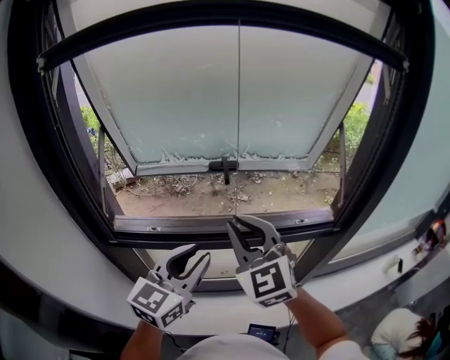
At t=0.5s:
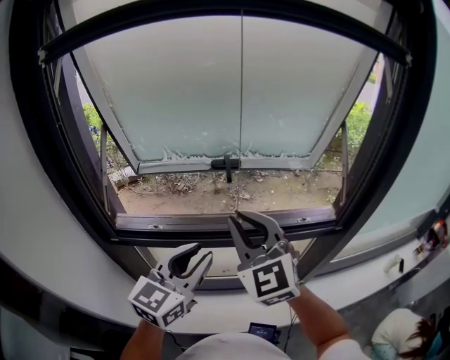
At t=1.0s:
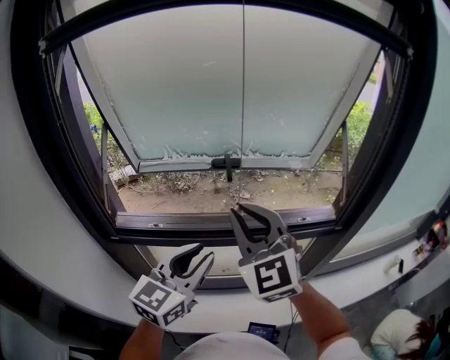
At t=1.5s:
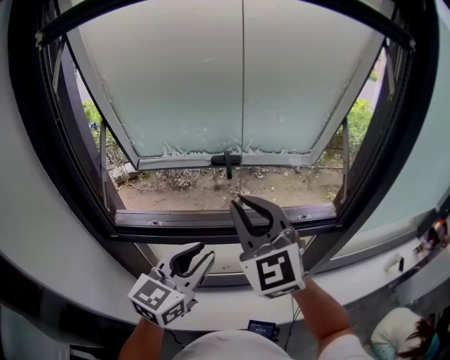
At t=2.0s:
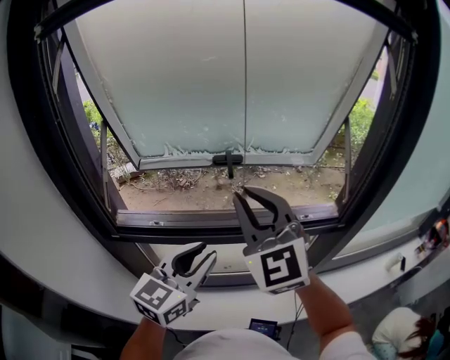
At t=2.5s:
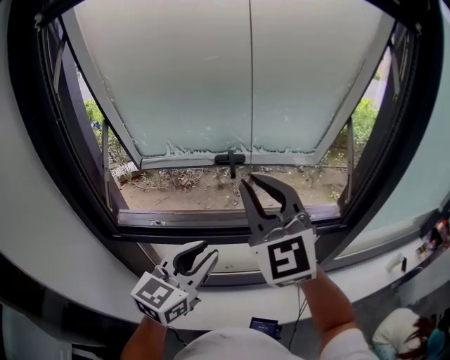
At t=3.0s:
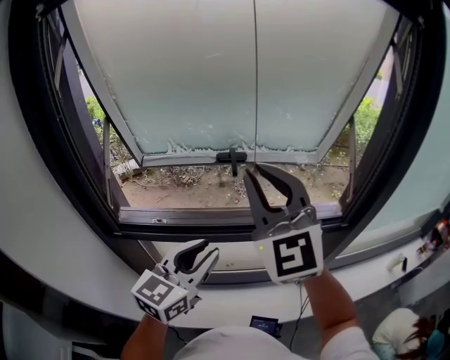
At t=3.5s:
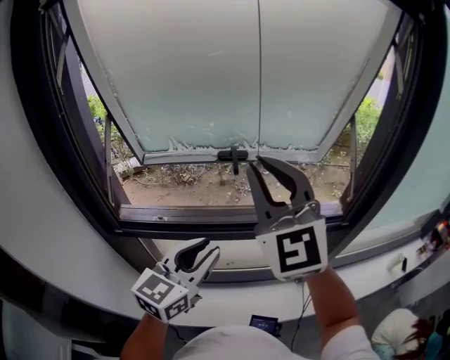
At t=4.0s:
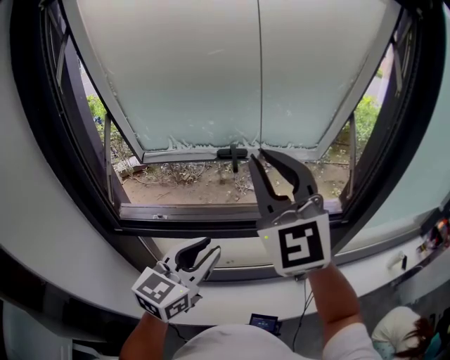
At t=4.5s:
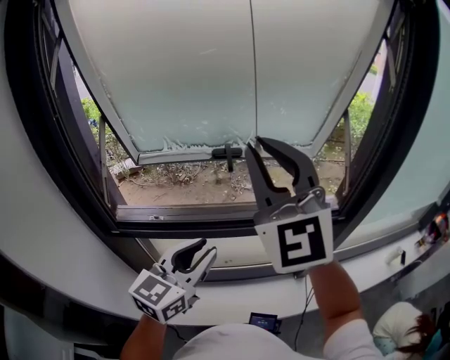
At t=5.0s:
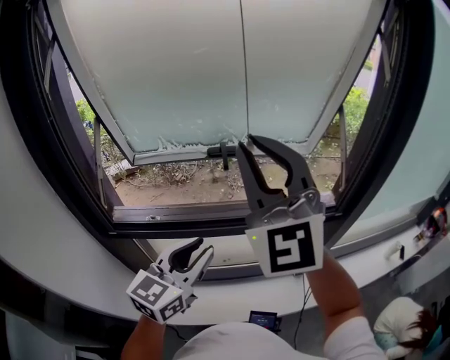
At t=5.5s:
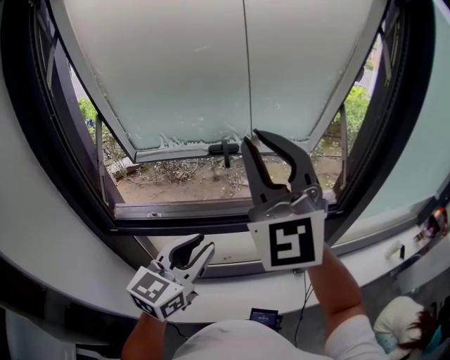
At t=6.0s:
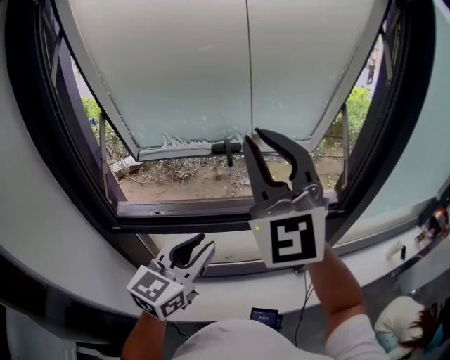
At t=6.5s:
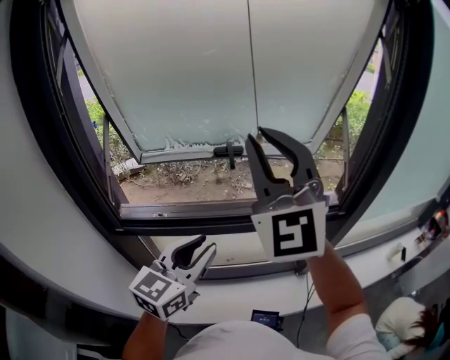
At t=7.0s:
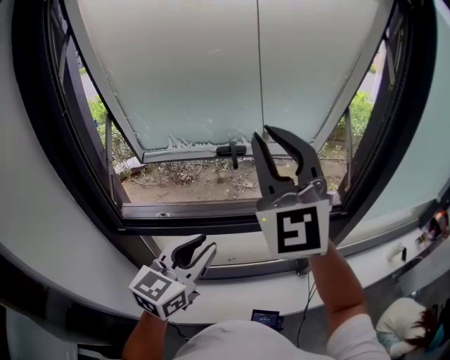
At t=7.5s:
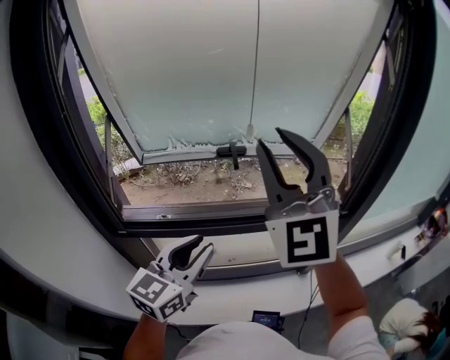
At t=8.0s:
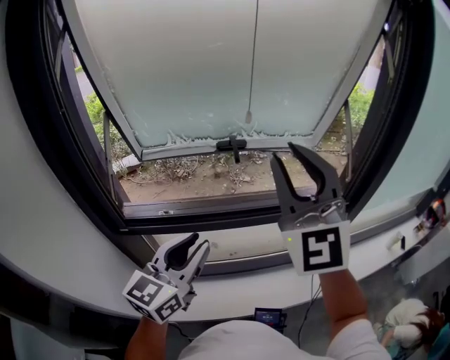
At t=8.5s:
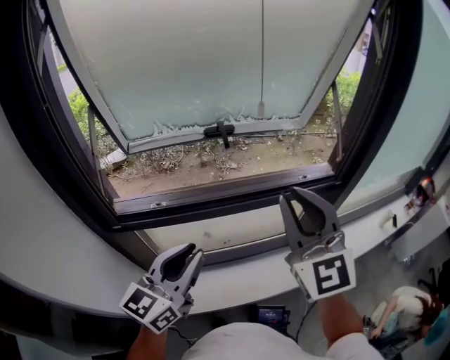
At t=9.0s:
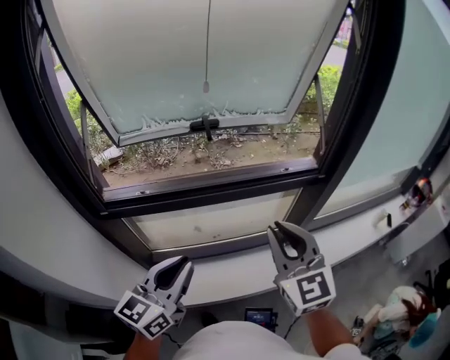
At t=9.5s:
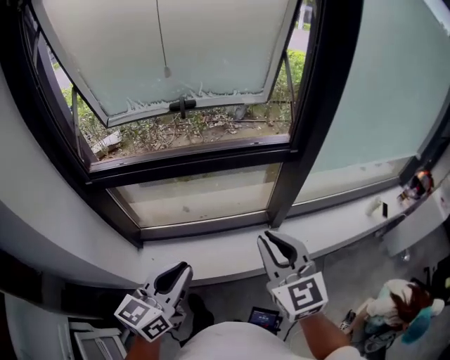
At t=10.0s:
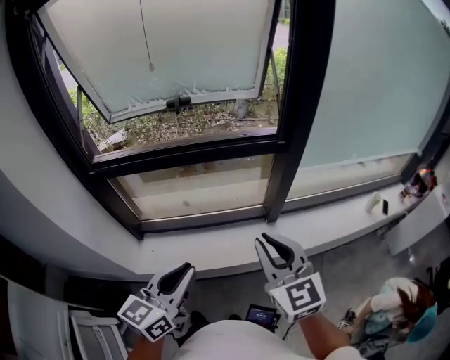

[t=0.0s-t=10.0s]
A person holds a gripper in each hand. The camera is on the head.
t=0.0s to t=2.0s: The right gripper is displaced upward by approximately 5 cm.
t=2.0s to t=4.0s: The right gripper heads upward, covering some 5 cm.
t=4.0s to t=6.0s: The grippers move only a little.
t=6.0s to t=8.0s: The left gripper heads to the left, covering approximately 5 cm.
t=8.0s to t=10.0s: The right gripper travels downward, backward and to the right by roughly 40 cm, and turns by some 40 degrees. Meanwhile the left gripper travels backward and to the right by some 30 cm.

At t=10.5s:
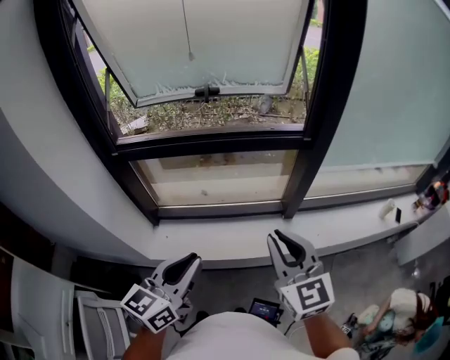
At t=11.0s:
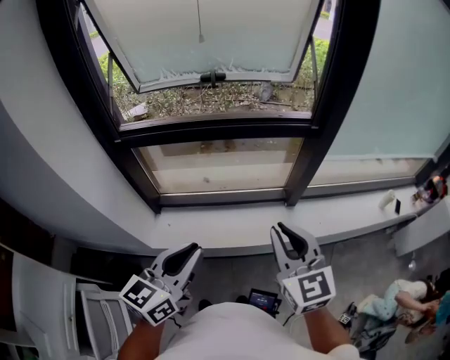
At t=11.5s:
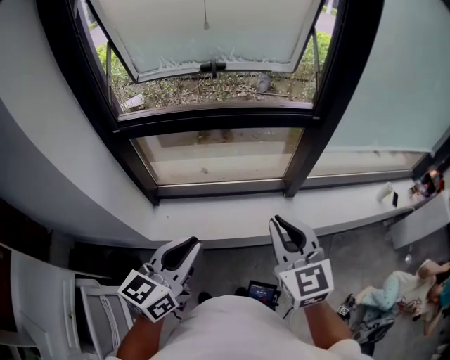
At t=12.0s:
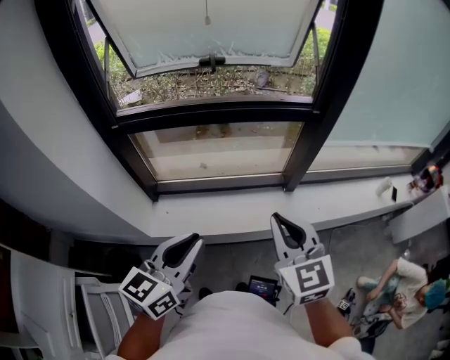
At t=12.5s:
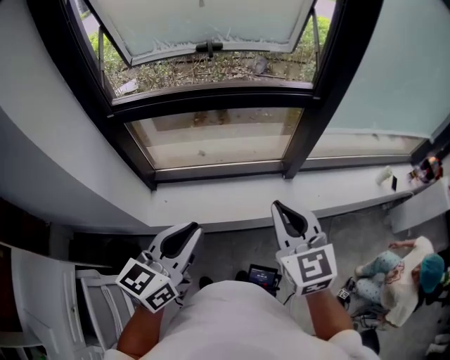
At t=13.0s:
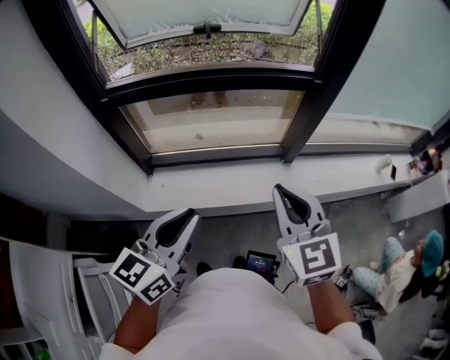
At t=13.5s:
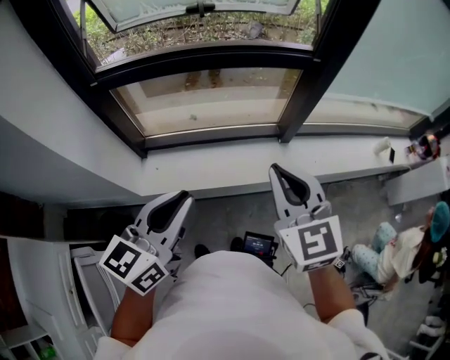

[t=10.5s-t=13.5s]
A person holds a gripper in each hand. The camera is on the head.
t=10.5s to t=12.0s: The right gripper ends up roughly 5 cm from where it was.
t=12.0s to t=13.5s: The grippers make only small movements.

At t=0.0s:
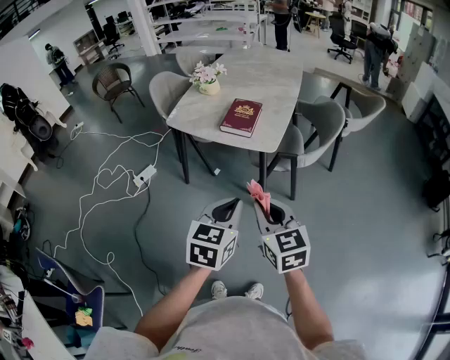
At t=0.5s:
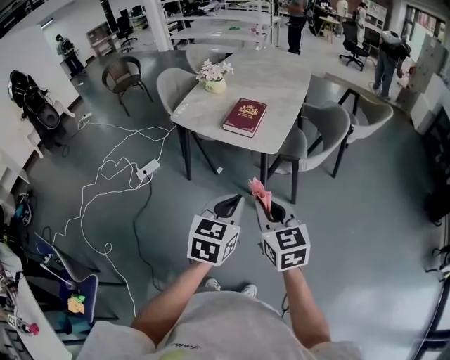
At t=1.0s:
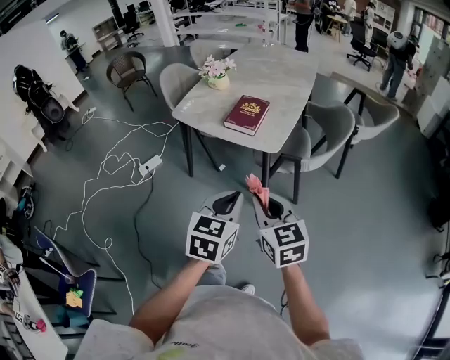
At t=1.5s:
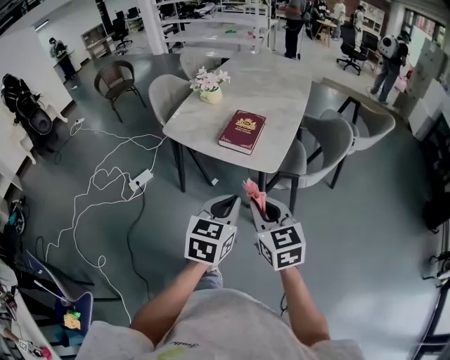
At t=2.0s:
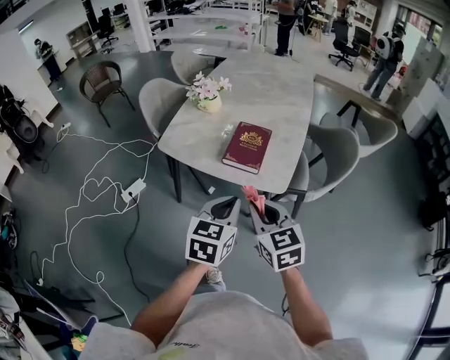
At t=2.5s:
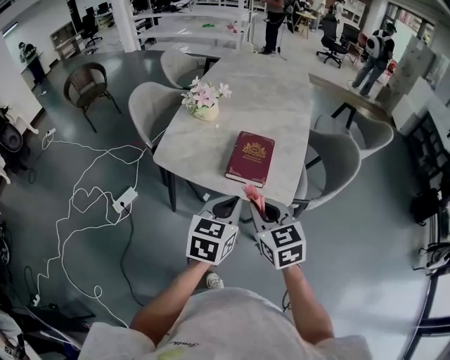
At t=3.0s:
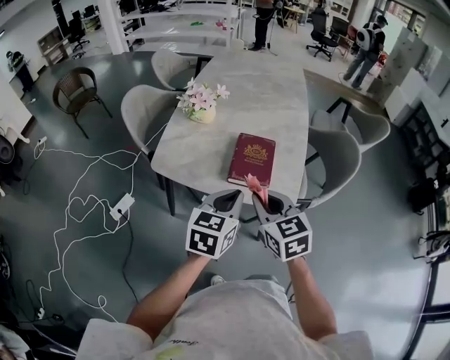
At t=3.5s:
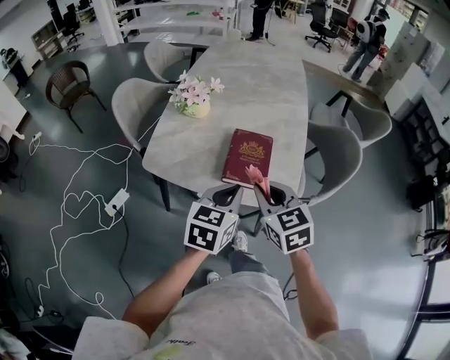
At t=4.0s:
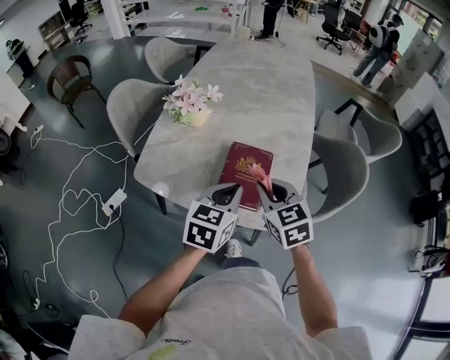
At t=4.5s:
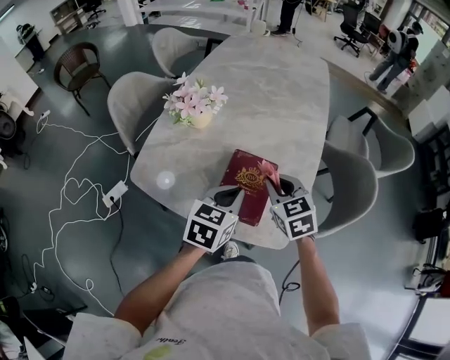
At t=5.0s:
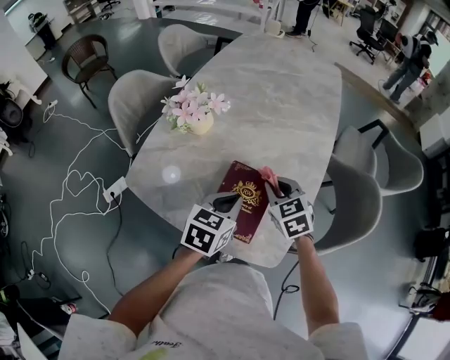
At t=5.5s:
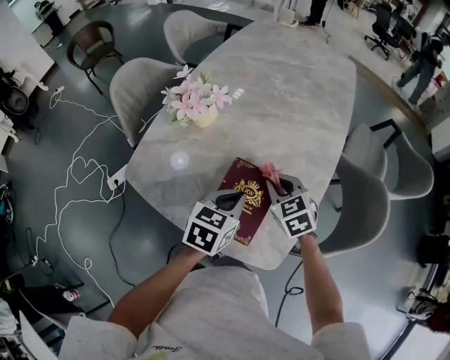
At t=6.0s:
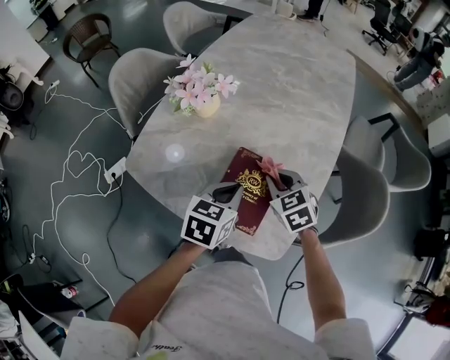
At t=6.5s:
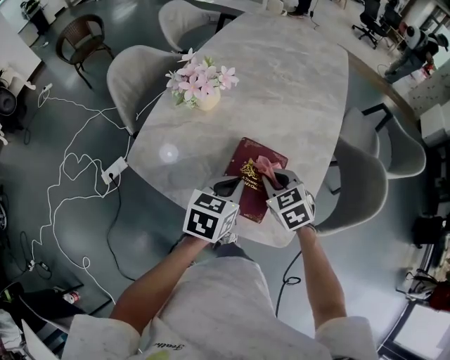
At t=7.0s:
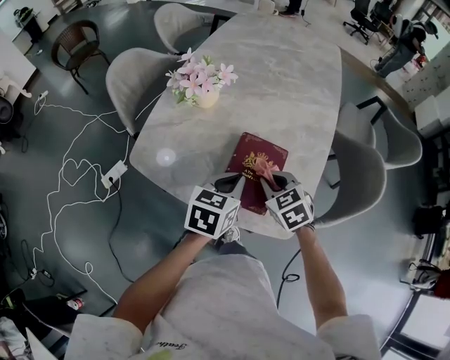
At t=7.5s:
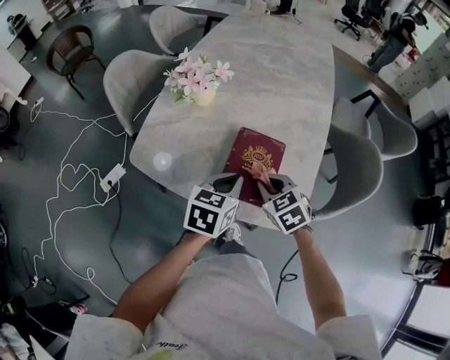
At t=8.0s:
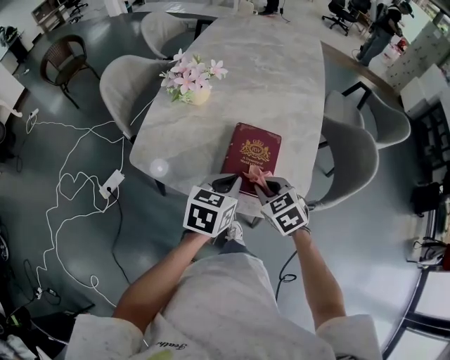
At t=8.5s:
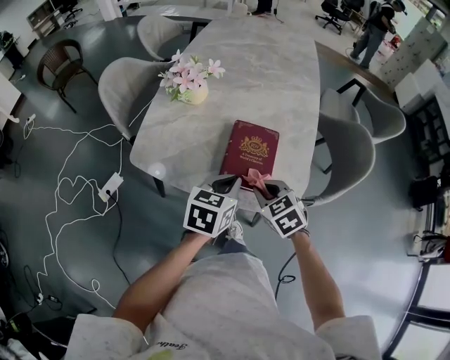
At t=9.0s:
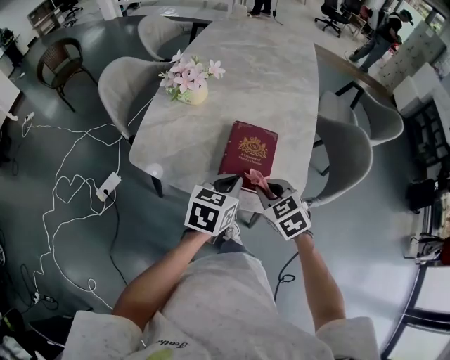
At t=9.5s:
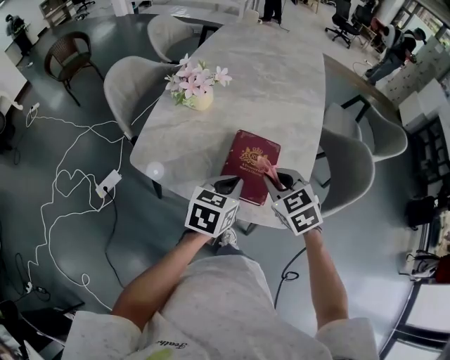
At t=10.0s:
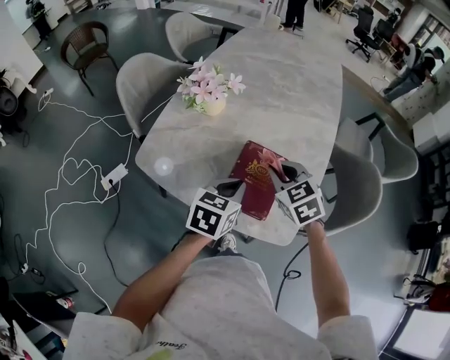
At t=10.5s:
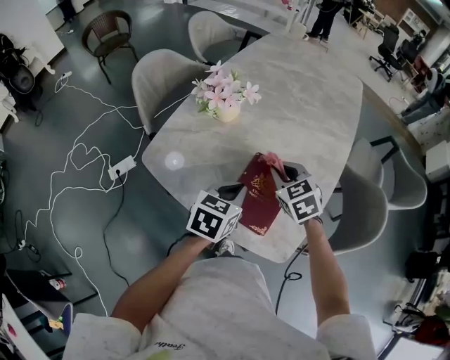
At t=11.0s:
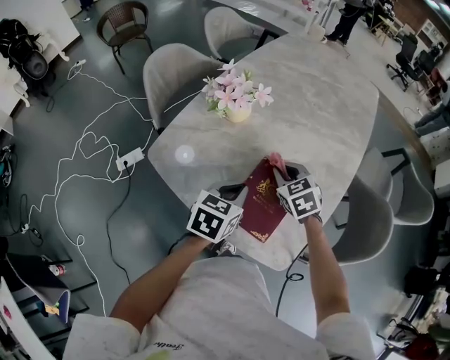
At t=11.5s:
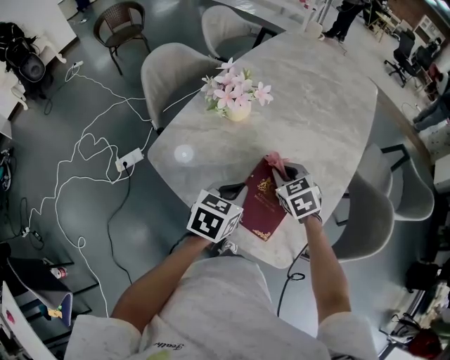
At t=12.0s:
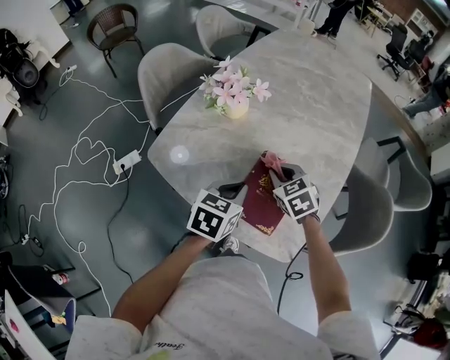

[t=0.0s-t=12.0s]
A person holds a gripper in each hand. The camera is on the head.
t=0.0s to t=2.0s: Both grippers move forward, some 20 cm.
t=2.0s to t=4.0s: The grippers both shift forward by roughly 25 cm.
t=4.0s to t=6.0s: Both grippers travel together forward and downward, roughly 15 cm.
t=6.0s to t=8.0s: The right gripper moves backward, approximately 15 cm. Meanwhile the left gripper heads backward, covering about 10 cm.
t=8.0s to t=10.0s: The right gripper is displaced forward and upward by about 10 cm.
t=10.0s to t=12.0s: The right gripper goes some 10 cm downward and forward.

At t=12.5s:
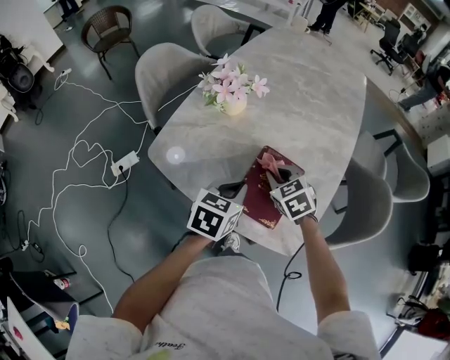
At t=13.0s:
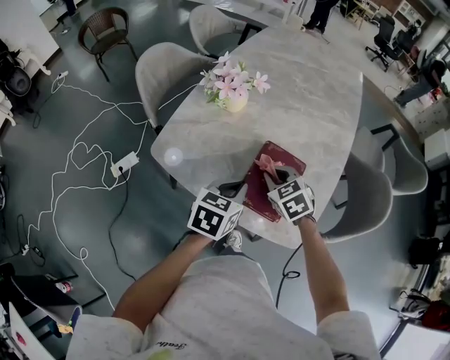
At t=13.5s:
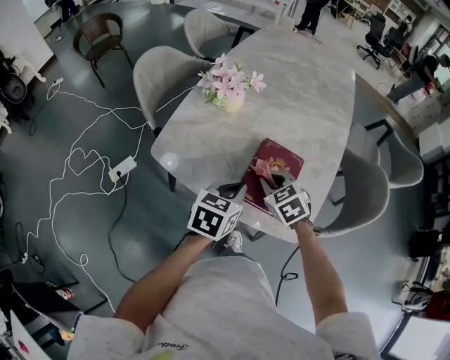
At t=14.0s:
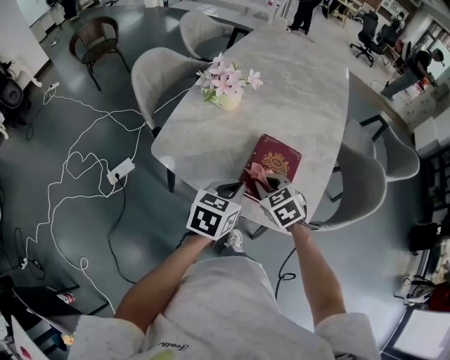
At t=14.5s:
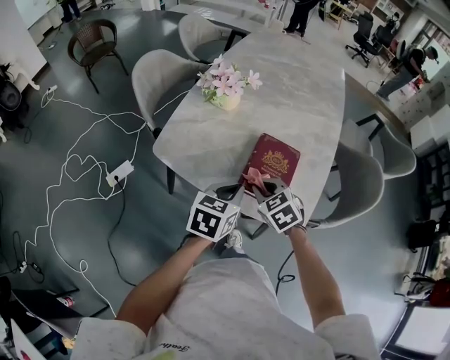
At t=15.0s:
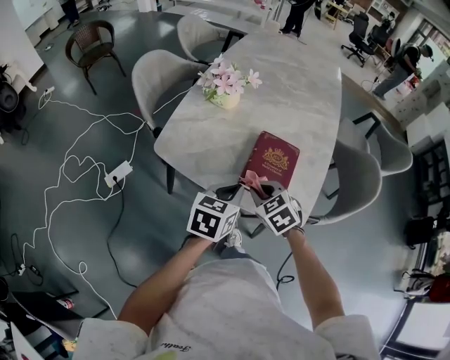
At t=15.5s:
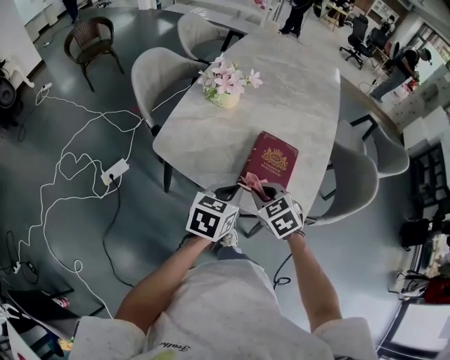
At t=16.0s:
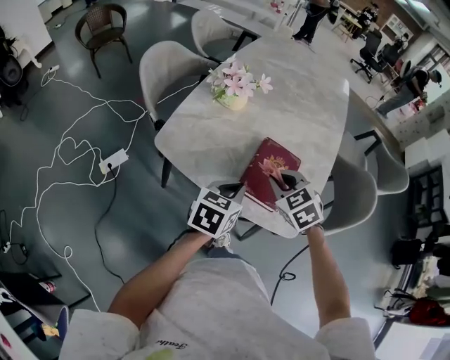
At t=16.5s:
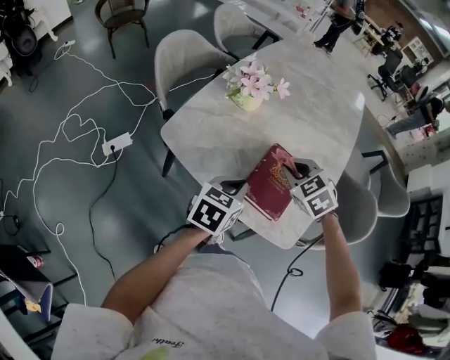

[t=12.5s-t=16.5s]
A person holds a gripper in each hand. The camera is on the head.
t=12.5s to t=14.5s: The left gripper is displaced backward by approximately 5 cm. The right gripper is displaced backward by about 10 cm.
t=14.5s to t=16.5s: The right gripper travels forward and upward by roughly 10 cm.
